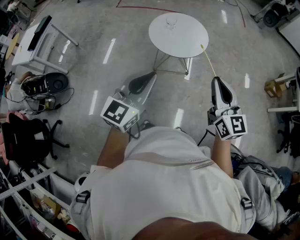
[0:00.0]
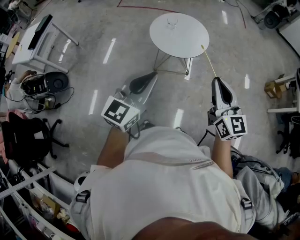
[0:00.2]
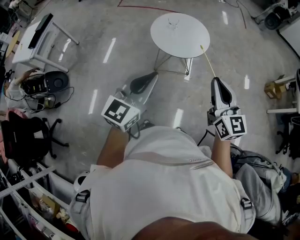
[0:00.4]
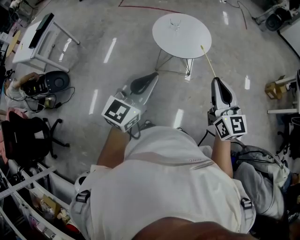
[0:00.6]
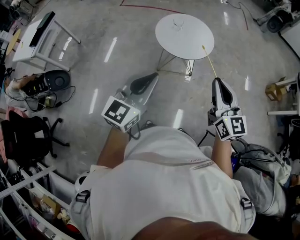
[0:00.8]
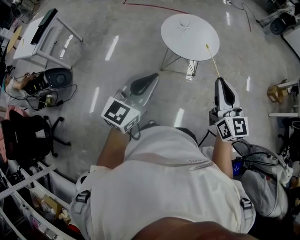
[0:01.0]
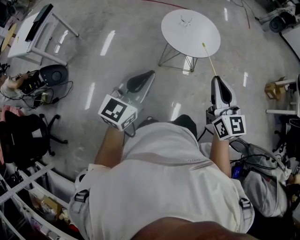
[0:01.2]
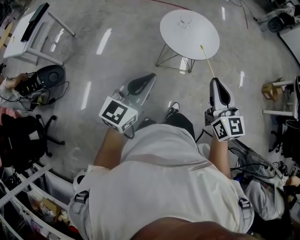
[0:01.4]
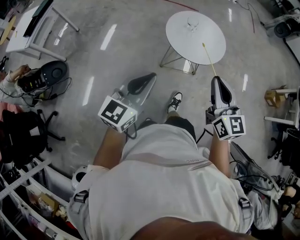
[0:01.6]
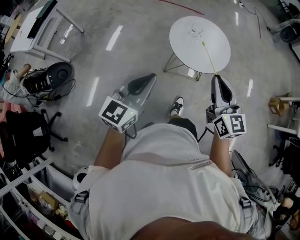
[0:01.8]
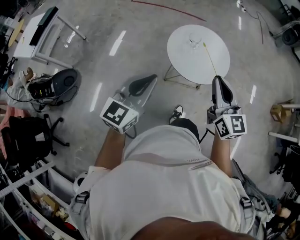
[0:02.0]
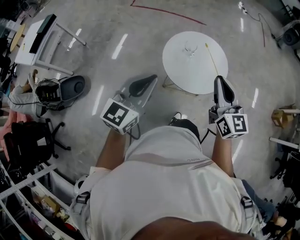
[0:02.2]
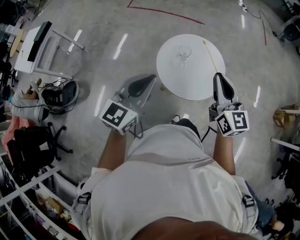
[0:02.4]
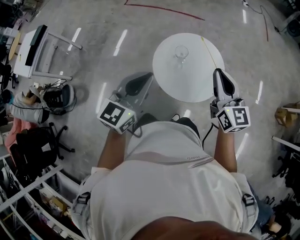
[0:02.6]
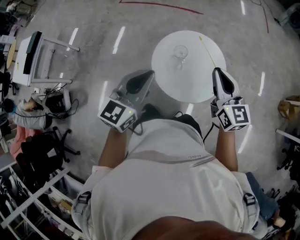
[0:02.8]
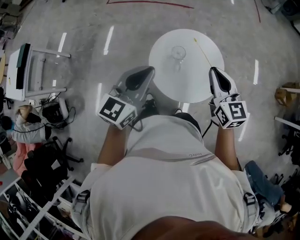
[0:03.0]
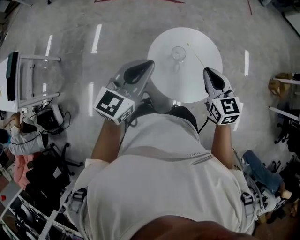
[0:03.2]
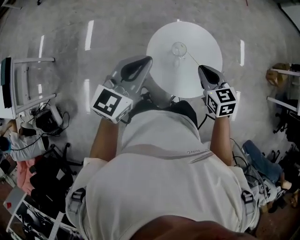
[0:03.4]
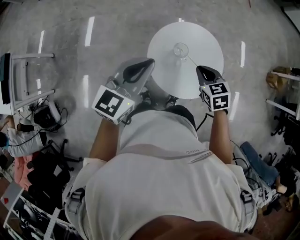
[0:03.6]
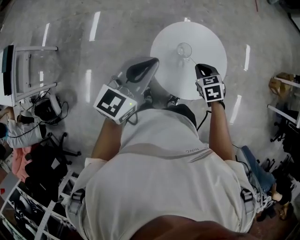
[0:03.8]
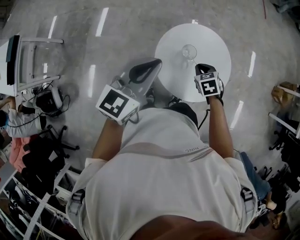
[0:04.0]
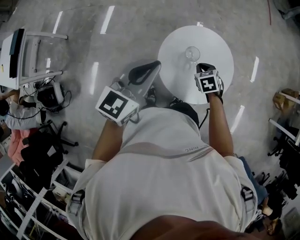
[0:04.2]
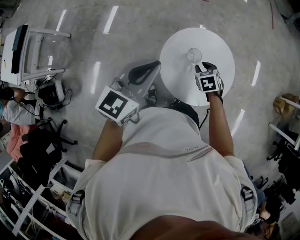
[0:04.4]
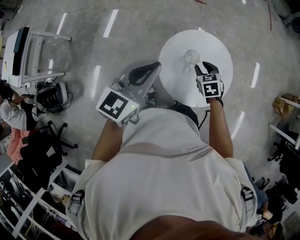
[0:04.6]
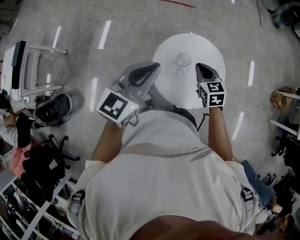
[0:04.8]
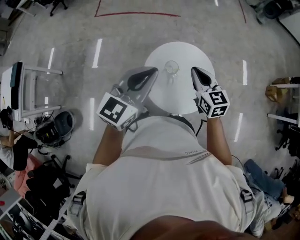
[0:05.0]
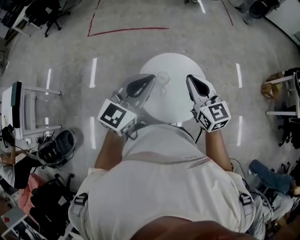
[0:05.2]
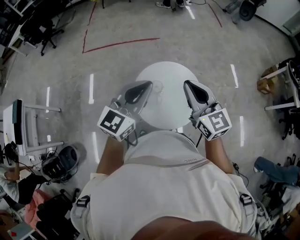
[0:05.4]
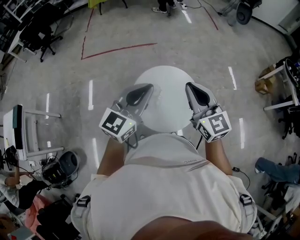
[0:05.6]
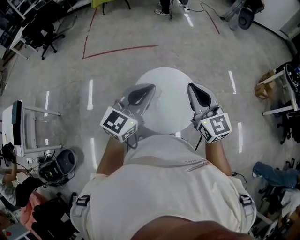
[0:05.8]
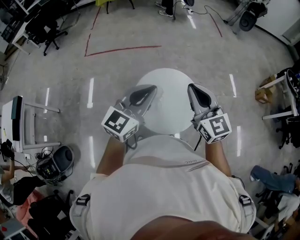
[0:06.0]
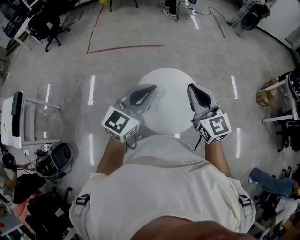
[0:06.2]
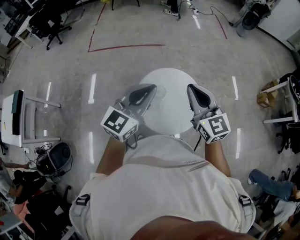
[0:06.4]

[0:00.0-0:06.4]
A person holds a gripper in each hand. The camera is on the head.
0:00.0 to 0:01.6: The grippers both shift to the left and forward by about 20 cm.
0:01.6 to 0:03.2: The pair of grippers is taken forward, roughly 50 cm. The right gripper changes its angle by roughly 20 degrees.
0:03.2 to 0:04.8: The right gripper moves downward and forward, approximately 10 cm, and opens, then closes once more.
0:04.8 to 0:06.4: The right gripper moves upward, approximately 25 cm, and tilts its fingers about 30 degrees upward, while the left gripper moves to the right and upward, some 15 cm.

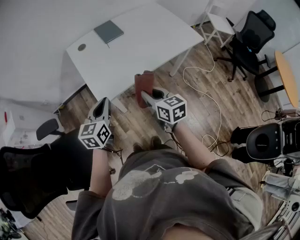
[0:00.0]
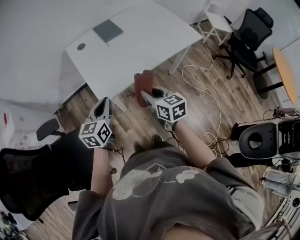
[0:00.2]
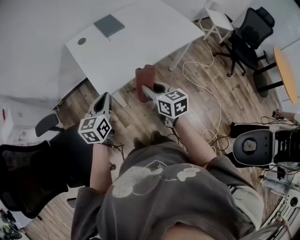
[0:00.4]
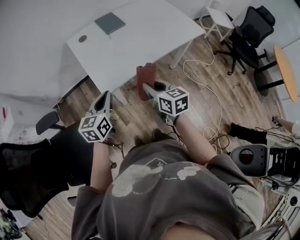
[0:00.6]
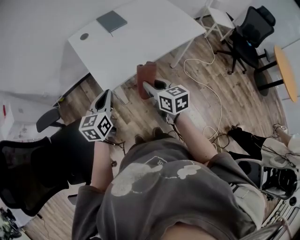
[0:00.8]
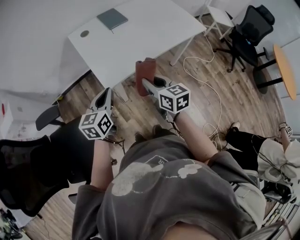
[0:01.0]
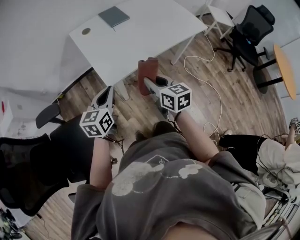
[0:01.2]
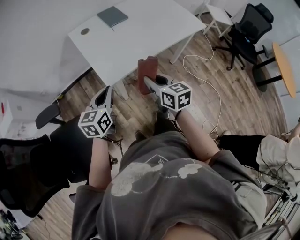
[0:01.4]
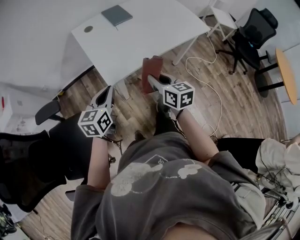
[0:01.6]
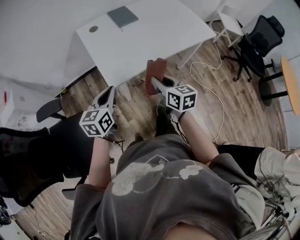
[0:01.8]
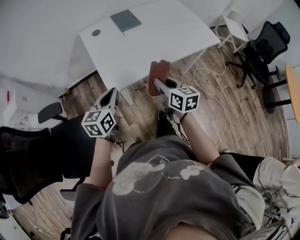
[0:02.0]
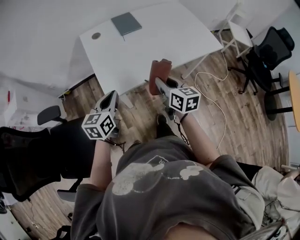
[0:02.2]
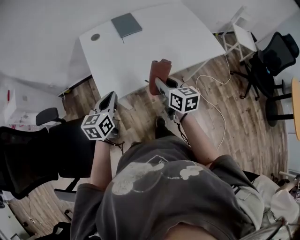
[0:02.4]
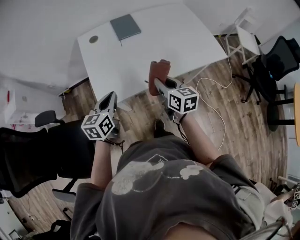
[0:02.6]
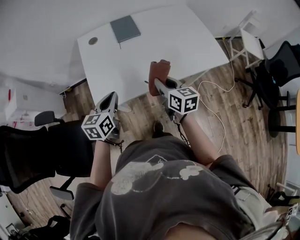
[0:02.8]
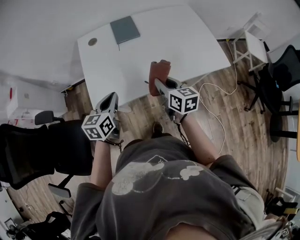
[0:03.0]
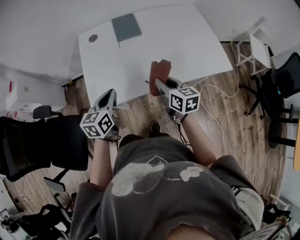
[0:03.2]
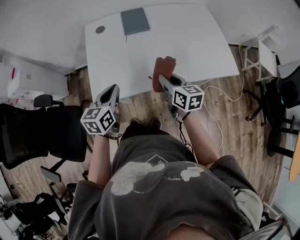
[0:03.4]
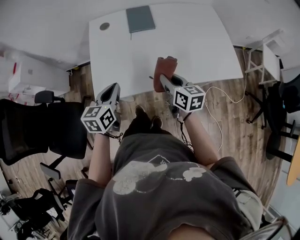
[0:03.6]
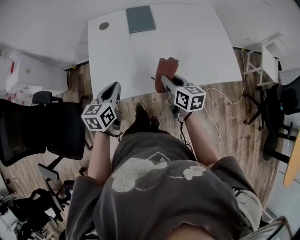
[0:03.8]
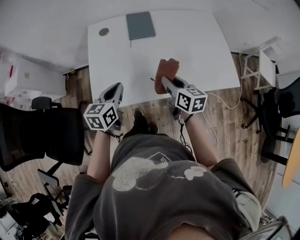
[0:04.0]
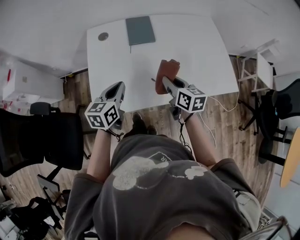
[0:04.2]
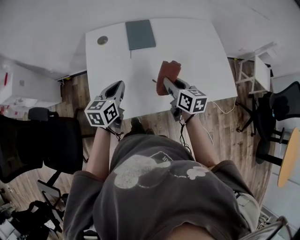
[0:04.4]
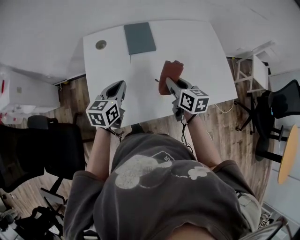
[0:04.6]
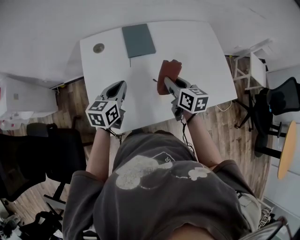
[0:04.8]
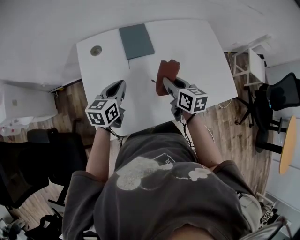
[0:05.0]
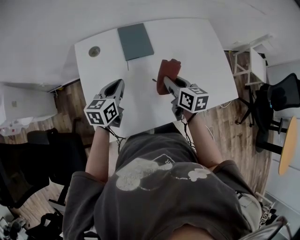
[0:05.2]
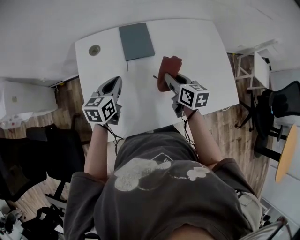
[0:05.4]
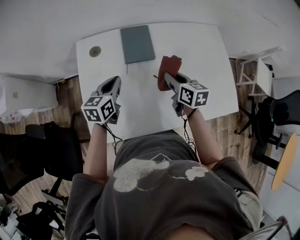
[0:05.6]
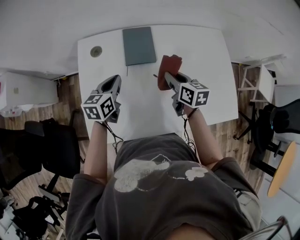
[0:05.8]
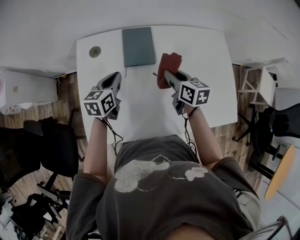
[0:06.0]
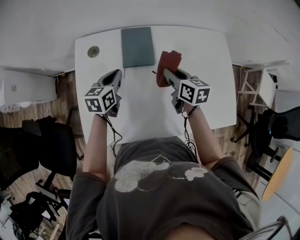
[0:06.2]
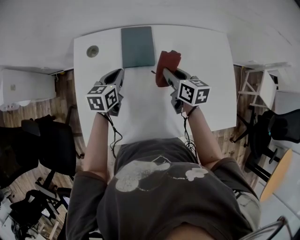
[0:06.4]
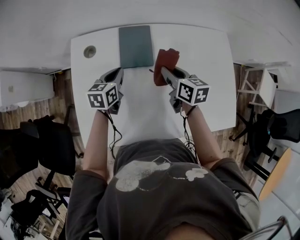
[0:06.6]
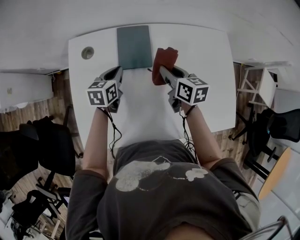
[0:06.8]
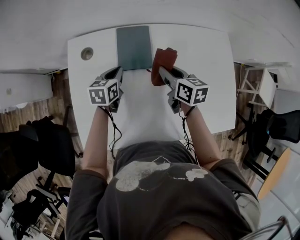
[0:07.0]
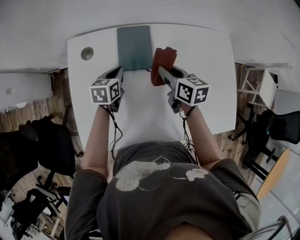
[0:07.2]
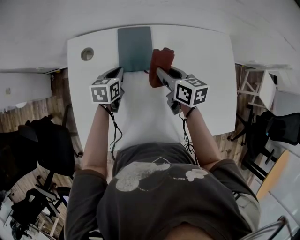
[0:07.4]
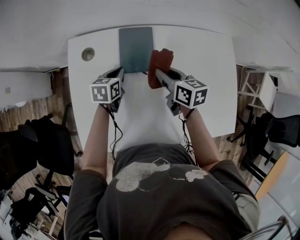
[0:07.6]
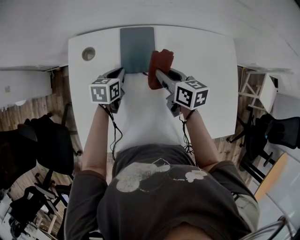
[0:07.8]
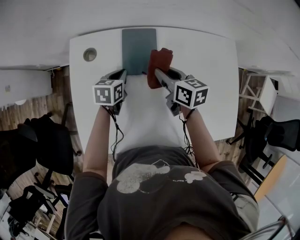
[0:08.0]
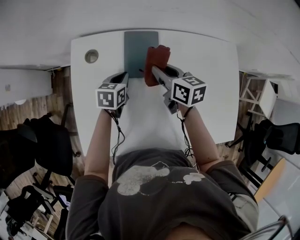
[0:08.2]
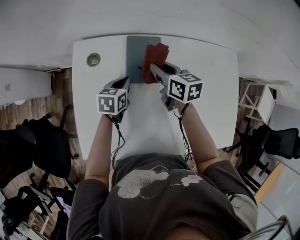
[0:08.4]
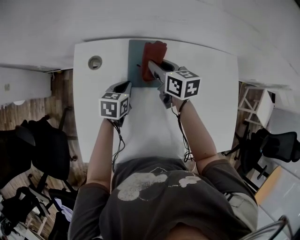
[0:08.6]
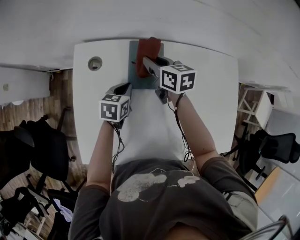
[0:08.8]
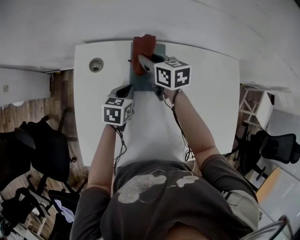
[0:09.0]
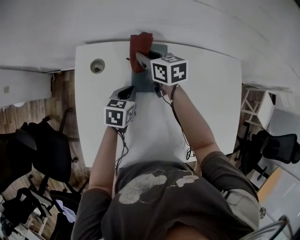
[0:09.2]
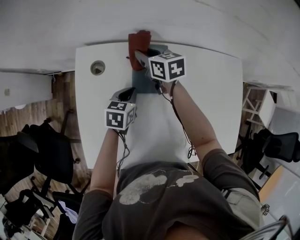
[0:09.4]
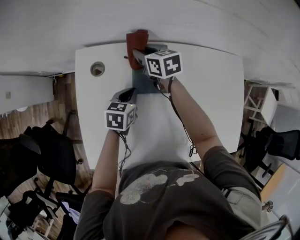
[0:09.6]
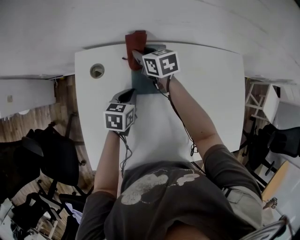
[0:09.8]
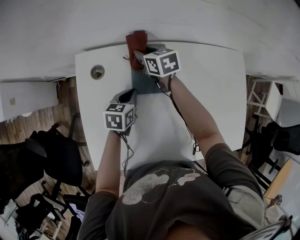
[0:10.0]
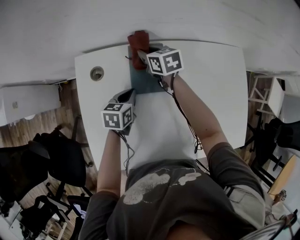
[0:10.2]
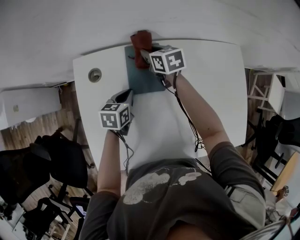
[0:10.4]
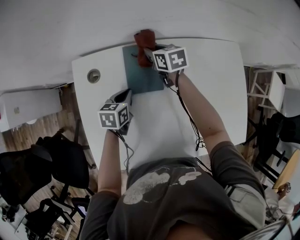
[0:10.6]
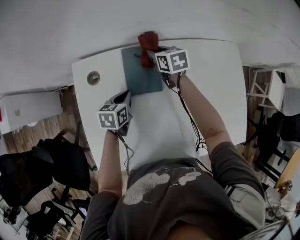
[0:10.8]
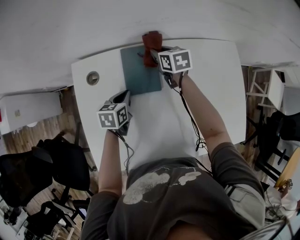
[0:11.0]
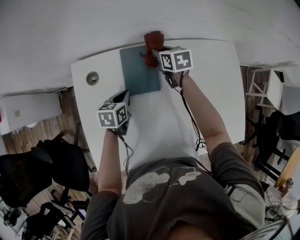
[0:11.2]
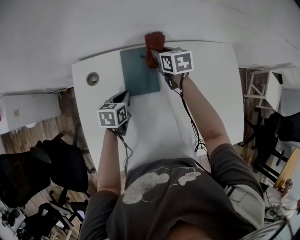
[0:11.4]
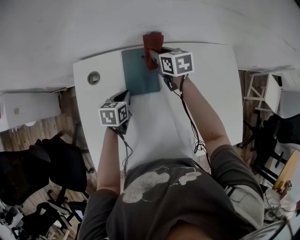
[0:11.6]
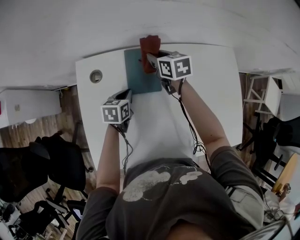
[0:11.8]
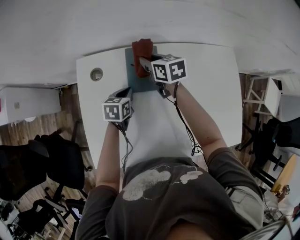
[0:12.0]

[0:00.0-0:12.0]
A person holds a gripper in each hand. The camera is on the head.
0:00.0 to 0:01.6: The left gripper heads to the left, covering roughly 5 cm. Meanwhile the right gripper ends up about 5 cm from where it was.
0:01.6 to 0:03.0: The left gripper shifts some 20 cm to the right and forward. The right gripper travels forward and to the right by some 25 cm.
0:03.0 to 0:04.4: Both grippers move forward, roughly 15 cm.
0:04.4 to 0:06.0: The two grippers go roughly 20 cm forward.
0:06.0 to 0:07.6: The right gripper moves forward, approximately 10 cm. Meanwhile the left gripper travels forward and downward by roughly 10 cm.
0:07.6 to 0:09.0: The right gripper is displaced forward and to the left by approximately 20 cm.
0:09.0 to 0:10.4: The right gripper moves about 10 cm.
0:10.4 to 0:12.0: The right gripper goes some 5 cm backward, and reaches approximately 10 cm to the right, then returns.

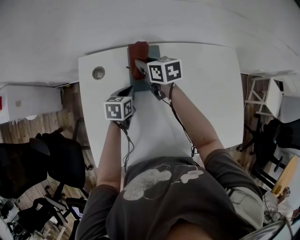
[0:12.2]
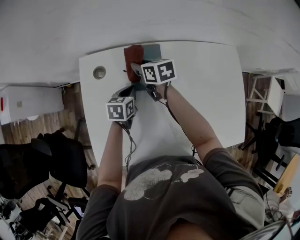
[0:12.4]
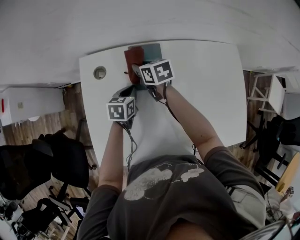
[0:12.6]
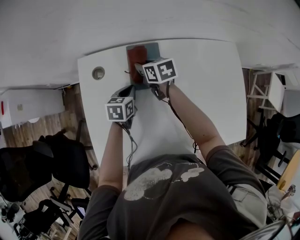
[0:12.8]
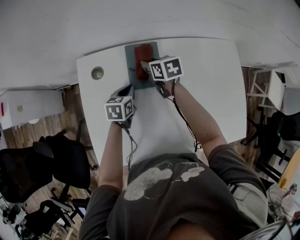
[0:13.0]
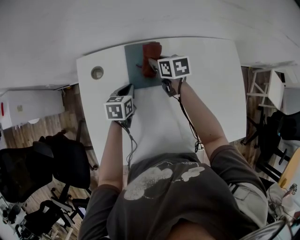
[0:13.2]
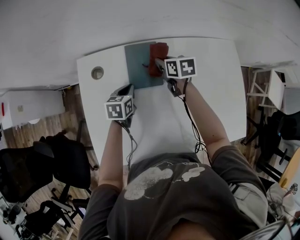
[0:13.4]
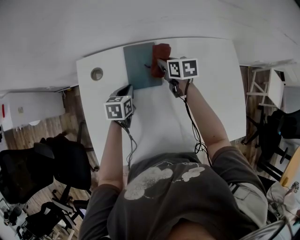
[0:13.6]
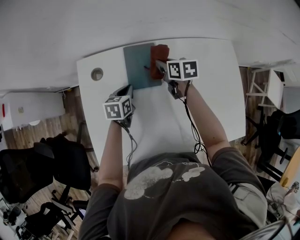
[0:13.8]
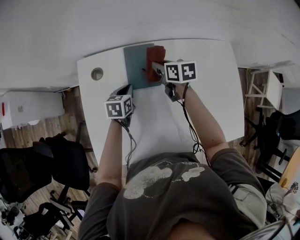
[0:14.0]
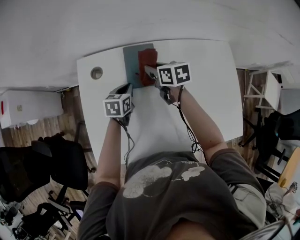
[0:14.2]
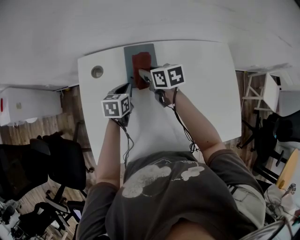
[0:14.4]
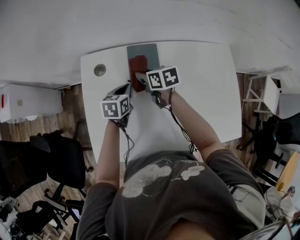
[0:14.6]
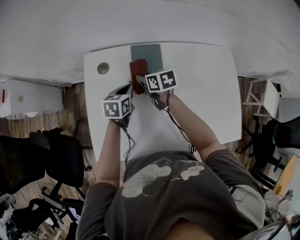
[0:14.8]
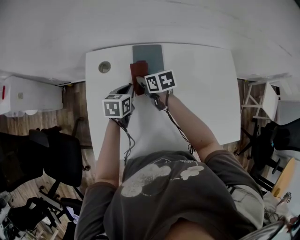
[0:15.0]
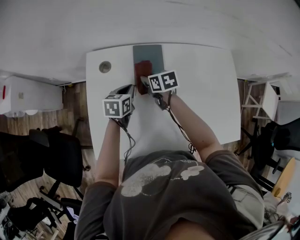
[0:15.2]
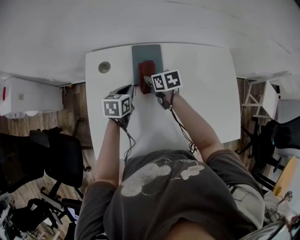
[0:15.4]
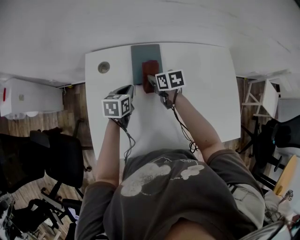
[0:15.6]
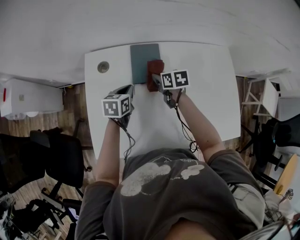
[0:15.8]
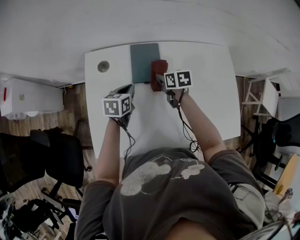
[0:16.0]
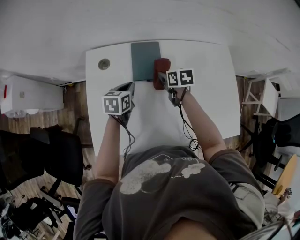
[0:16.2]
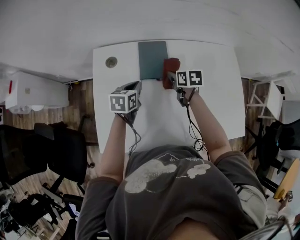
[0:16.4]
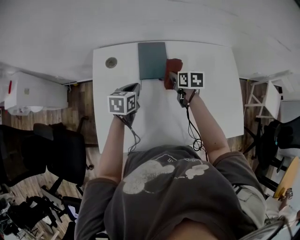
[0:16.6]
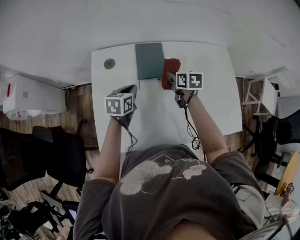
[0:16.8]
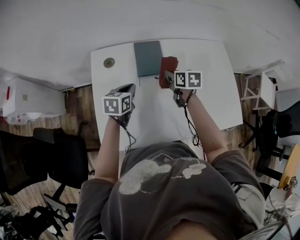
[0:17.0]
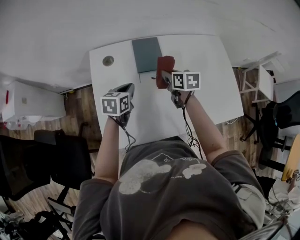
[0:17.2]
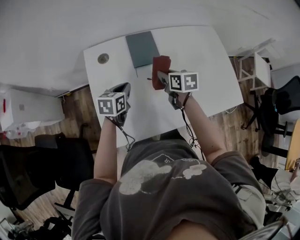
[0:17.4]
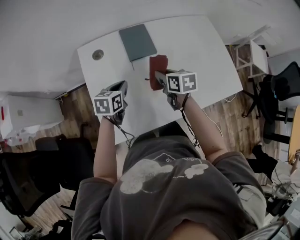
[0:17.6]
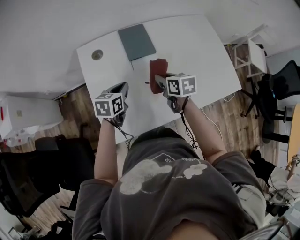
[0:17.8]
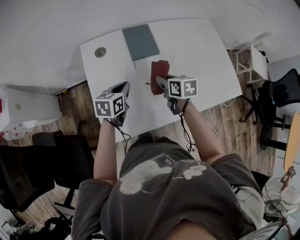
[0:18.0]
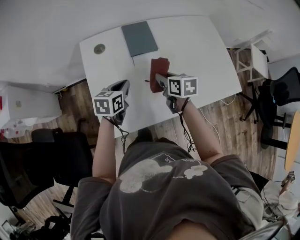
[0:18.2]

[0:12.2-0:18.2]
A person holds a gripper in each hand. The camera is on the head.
0:12.2 to 0:13.8: The right gripper is displaced to the right by approximately 10 cm.
0:13.8 to 0:15.2: The right gripper is displaced to the left and backward by about 15 cm; the left gripper changes place by some 5 cm.
0:15.2 to 0:16.6: The right gripper is displaced to the right by roughly 10 cm.
0:16.6 to 0:18.2: The right gripper shifts approximately 20 cm backward, while the left gripper travels backward by roughly 10 cm.
